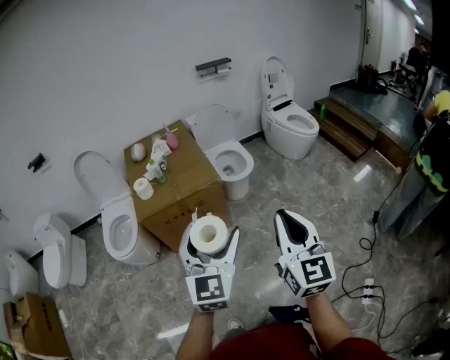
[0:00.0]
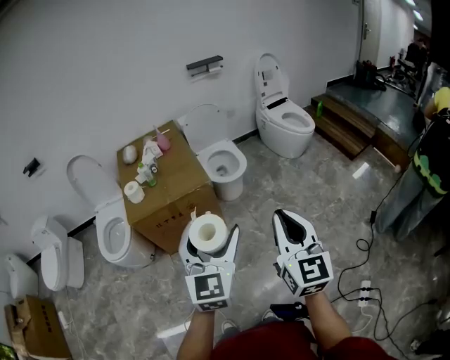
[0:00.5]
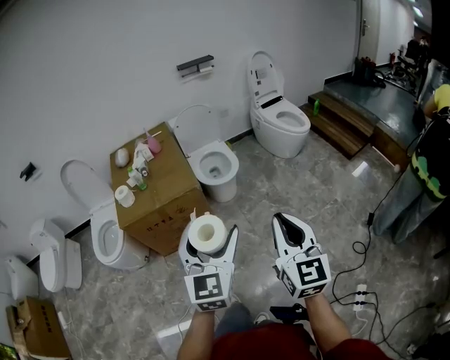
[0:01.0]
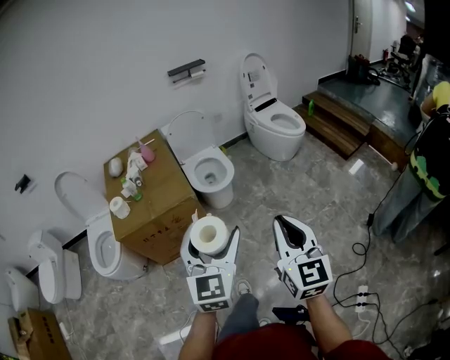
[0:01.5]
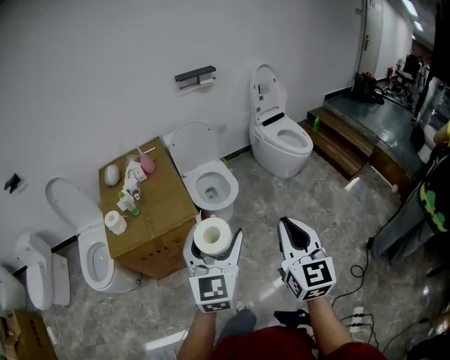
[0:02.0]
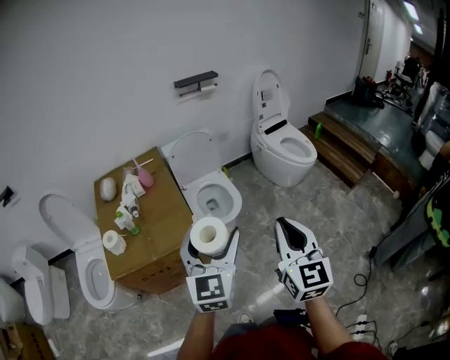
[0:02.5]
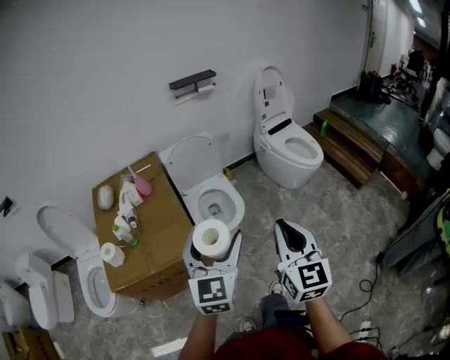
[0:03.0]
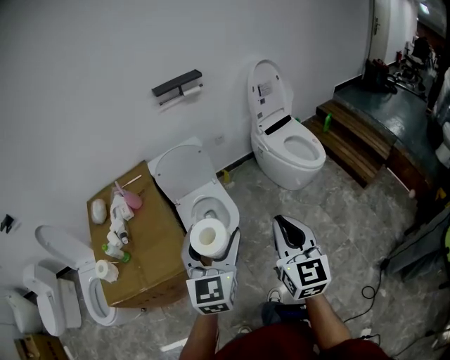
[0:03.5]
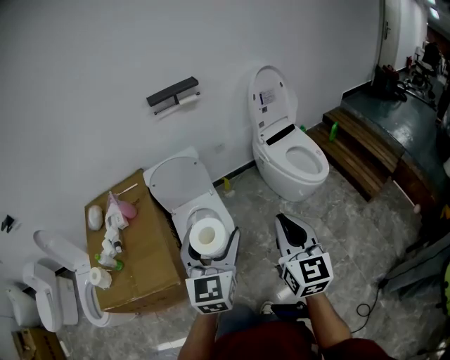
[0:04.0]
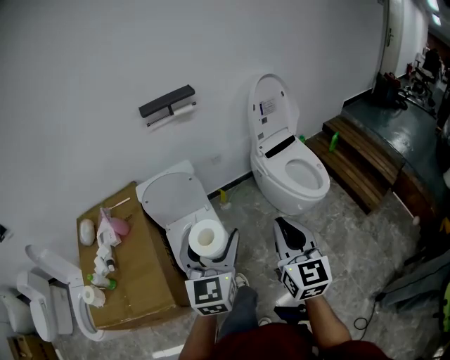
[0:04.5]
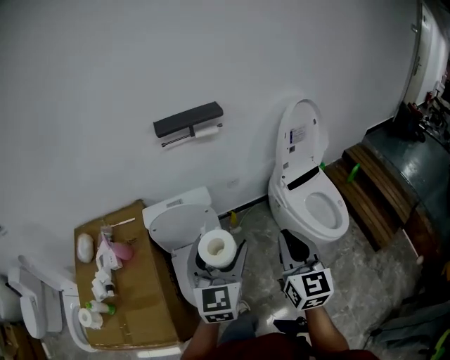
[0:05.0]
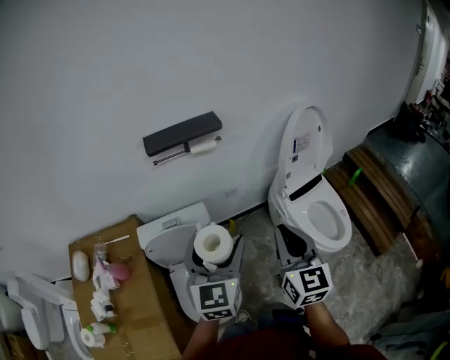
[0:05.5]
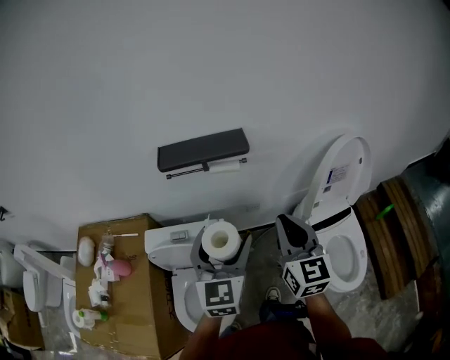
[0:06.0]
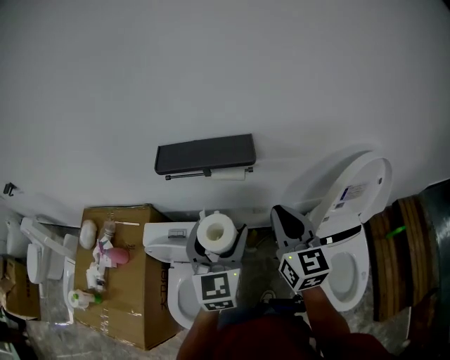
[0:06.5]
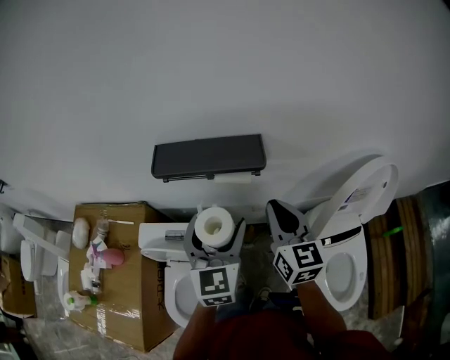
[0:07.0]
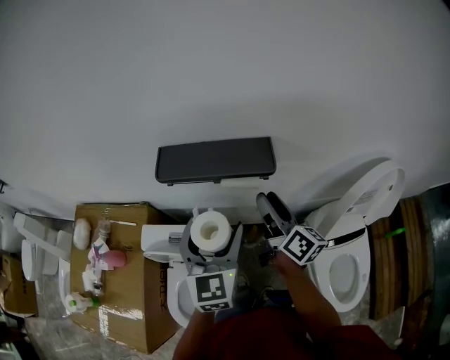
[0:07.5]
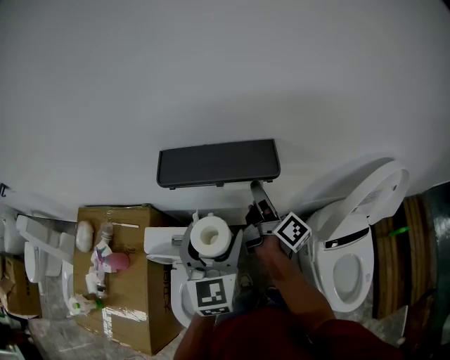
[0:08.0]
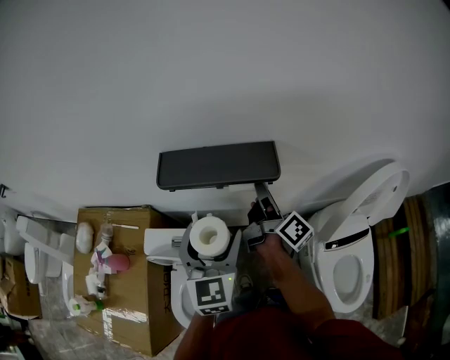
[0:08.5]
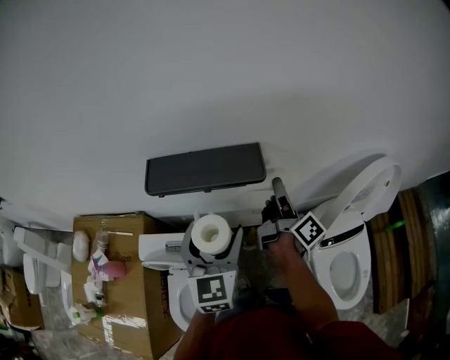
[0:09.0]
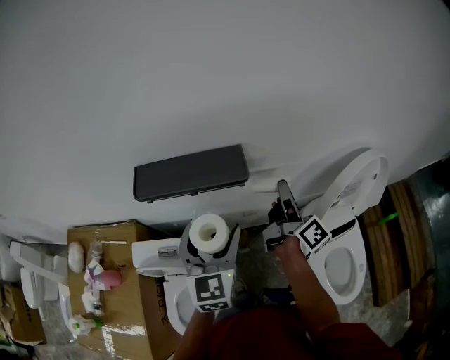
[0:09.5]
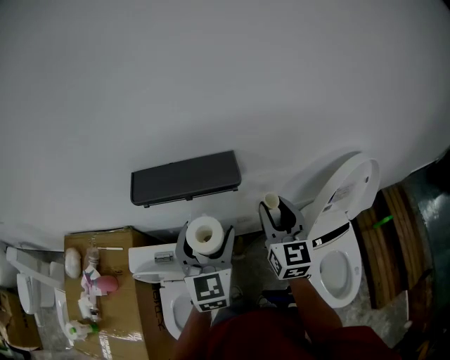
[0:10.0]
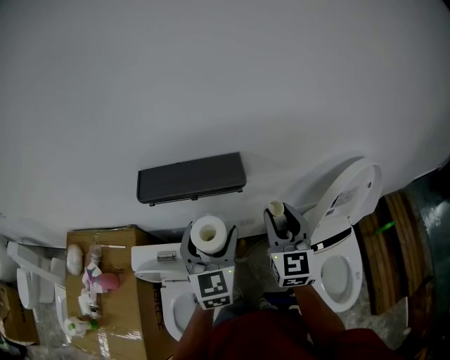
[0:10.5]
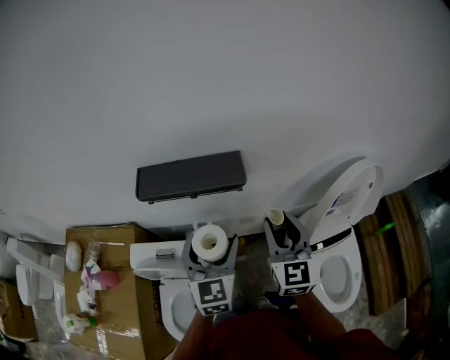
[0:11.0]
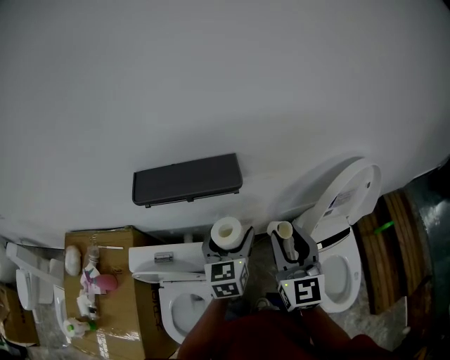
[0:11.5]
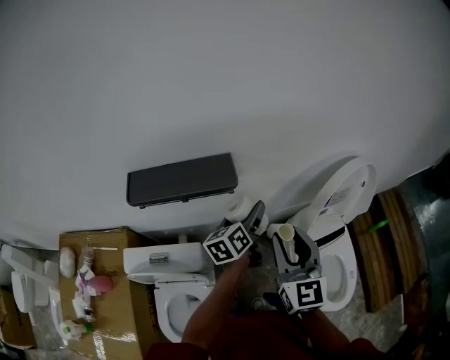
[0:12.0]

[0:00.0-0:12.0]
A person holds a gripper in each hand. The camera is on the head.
0:00.0 to 0:02.0: Both grippers move forward and to the right, about 25 cm.
0:02.0 to 0:04.0: The two grippers travel together, forward, roughly 40 cm.
0:04.0 to 0:06.0: The pair of grippers is taken forward, approximately 60 cm.
0:06.0 to 0:08.0: The left gripper moves forward, roughly 15 cm; the right gripper travels forward by some 25 cm, rotates around the line of its fingers by approximately 70 degrees, clockwise from behind, and opens.
0:08.0 to 0:10.0: The left gripper heads to the right, covering about 5 cm. Meanwhile the right gripper is displaced to the right, backward and upward by roughly 15 cm, rotates around the line of its fingers by roughly 70 degrees, counterclockwise from behind, and closes.
0:10.0 to 0:12.0: The left gripper heads to the right, downward and forward, covering about 15 cm, and twists roughly 50 degrees counterclockwise, seen from behind. The right gripper shifts roughly 10 cm backward.

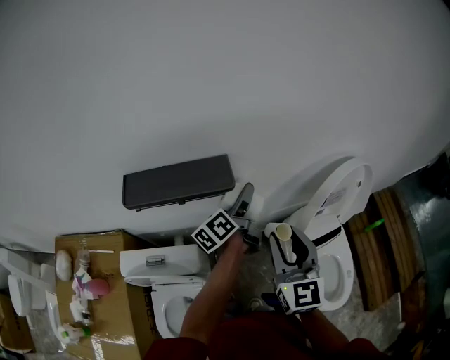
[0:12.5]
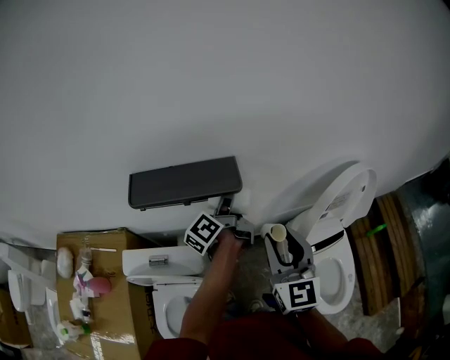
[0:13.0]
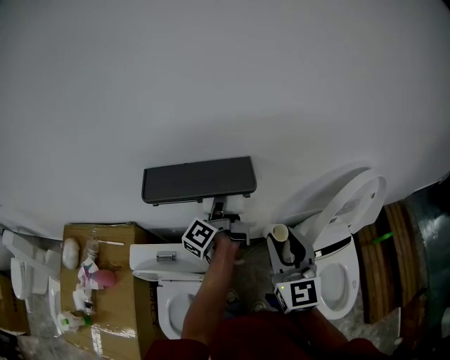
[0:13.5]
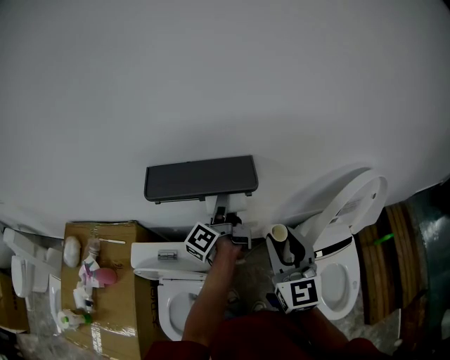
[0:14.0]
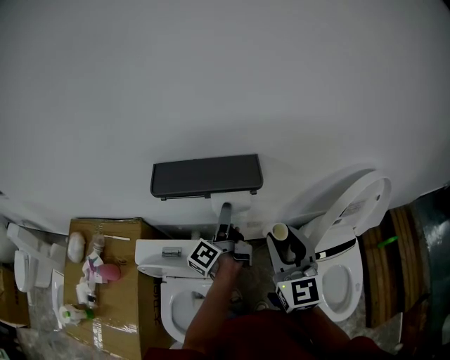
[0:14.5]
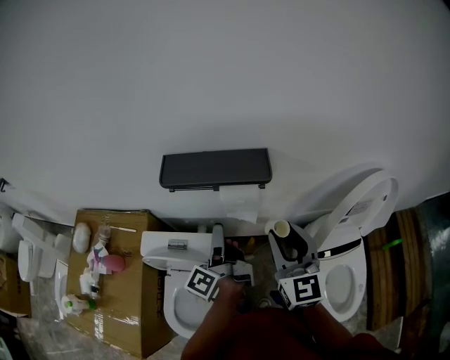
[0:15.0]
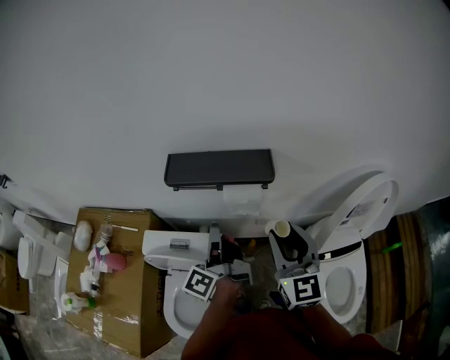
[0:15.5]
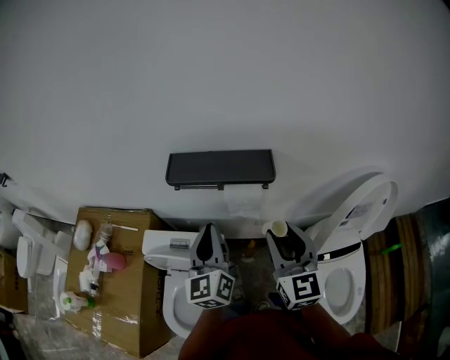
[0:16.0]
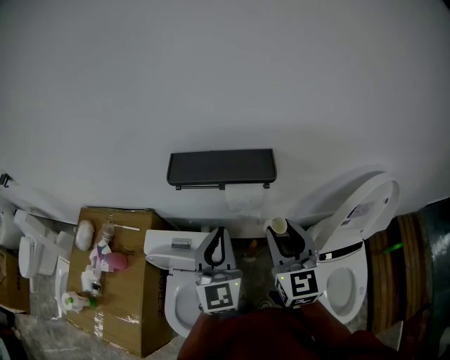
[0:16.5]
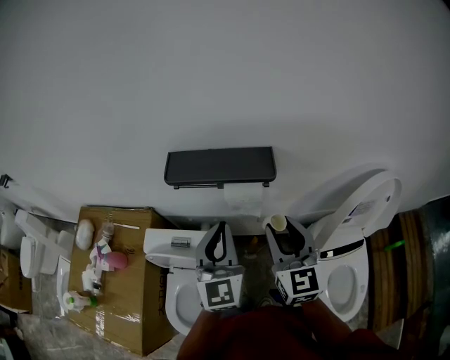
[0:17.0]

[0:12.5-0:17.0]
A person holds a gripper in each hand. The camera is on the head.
0:12.5 to 0:14.5: The left gripper is displaced to the left by about 15 cm, and swivels approximately 30 degrees. The right gripper heads to the left, covering about 5 cm.
0:14.5 to 0:17.0: The left gripper travels upward and backward by some 15 cm, twists about 80 degrees clockwise, seen from behind, and closes its fingers.

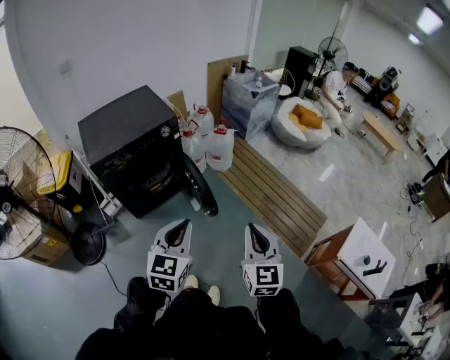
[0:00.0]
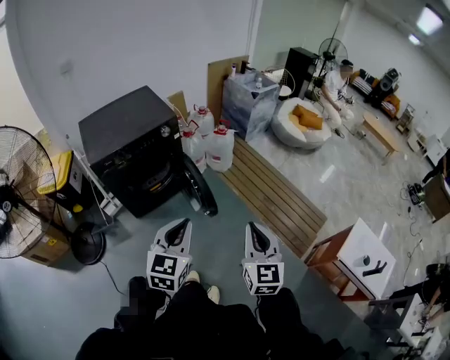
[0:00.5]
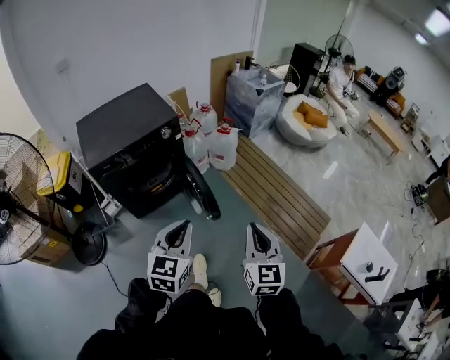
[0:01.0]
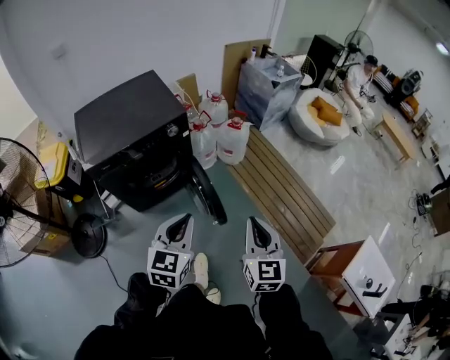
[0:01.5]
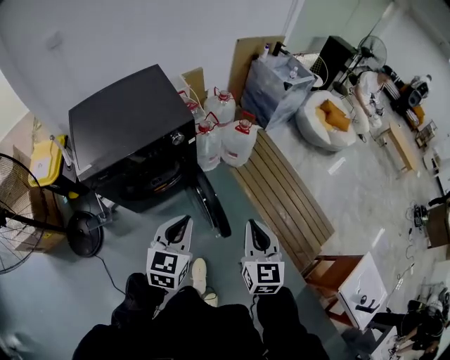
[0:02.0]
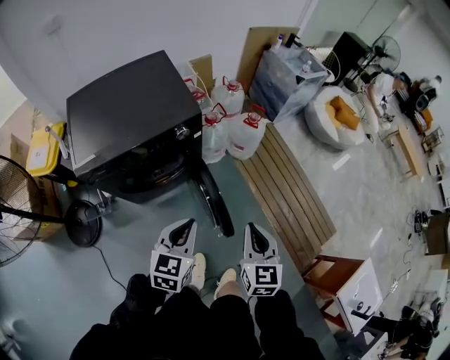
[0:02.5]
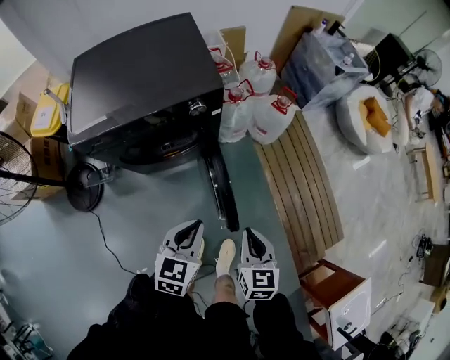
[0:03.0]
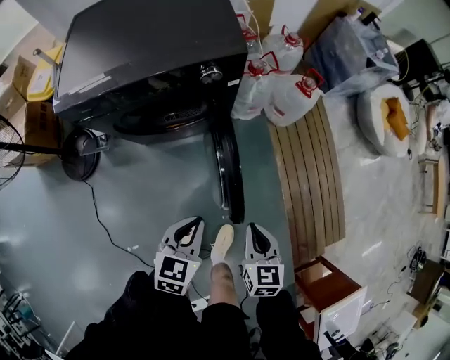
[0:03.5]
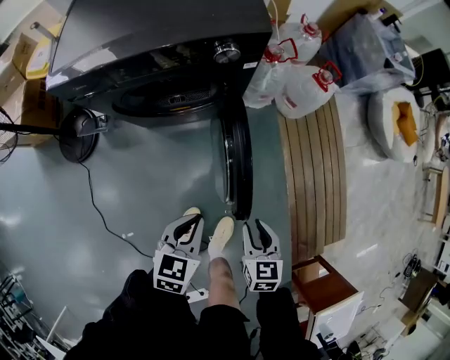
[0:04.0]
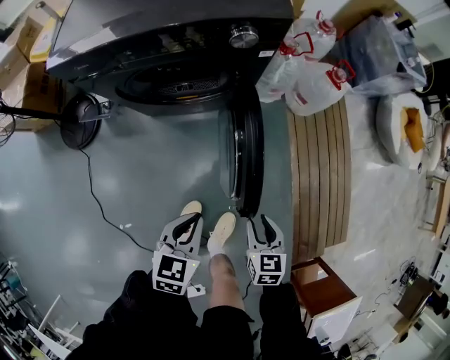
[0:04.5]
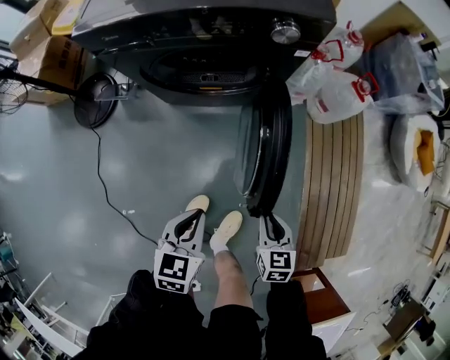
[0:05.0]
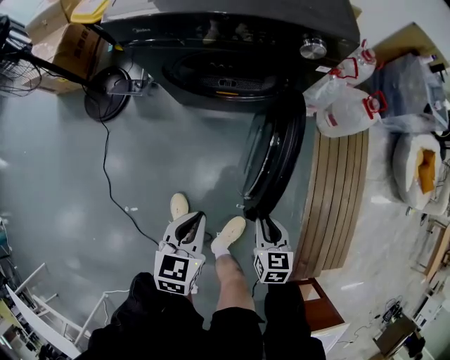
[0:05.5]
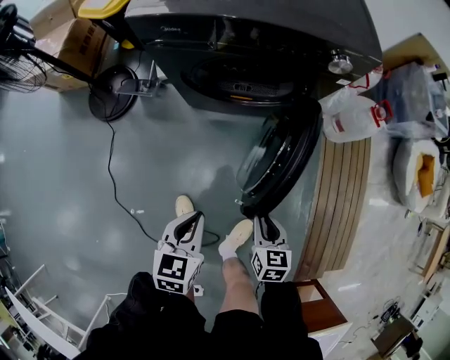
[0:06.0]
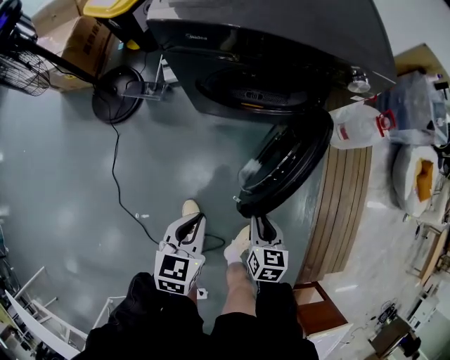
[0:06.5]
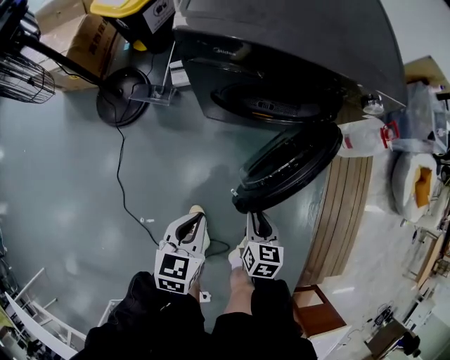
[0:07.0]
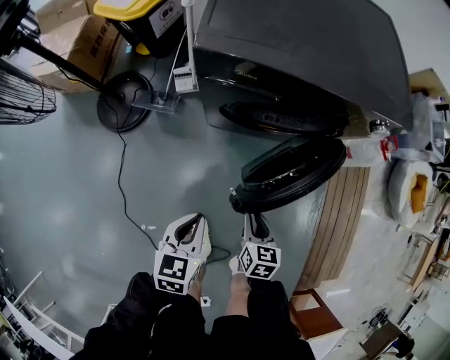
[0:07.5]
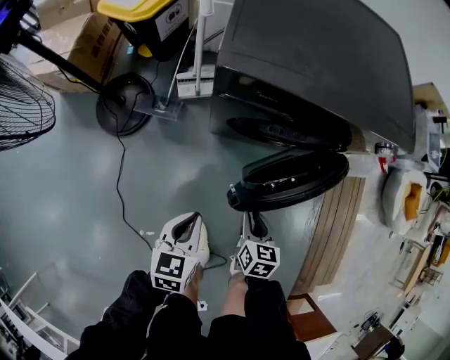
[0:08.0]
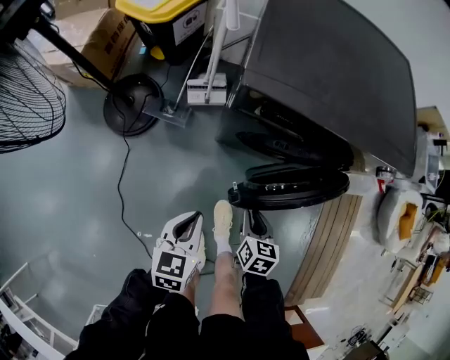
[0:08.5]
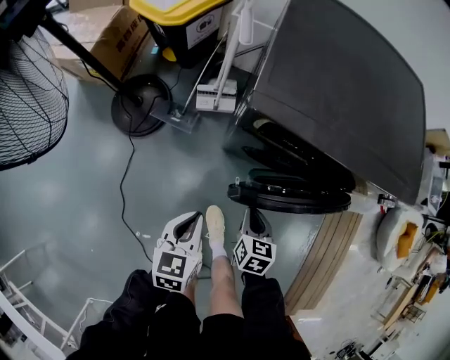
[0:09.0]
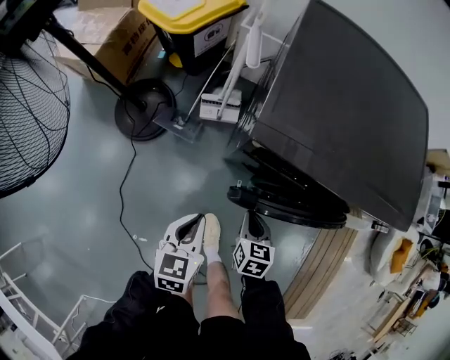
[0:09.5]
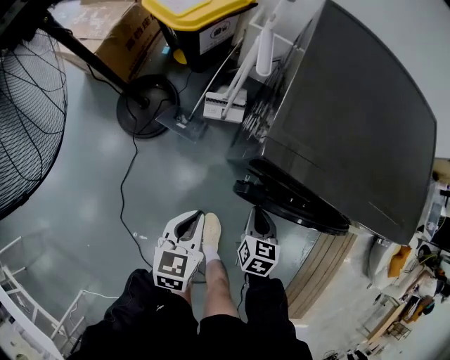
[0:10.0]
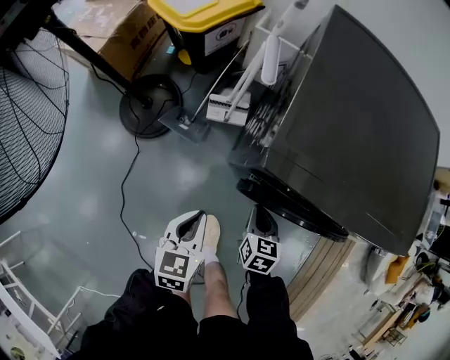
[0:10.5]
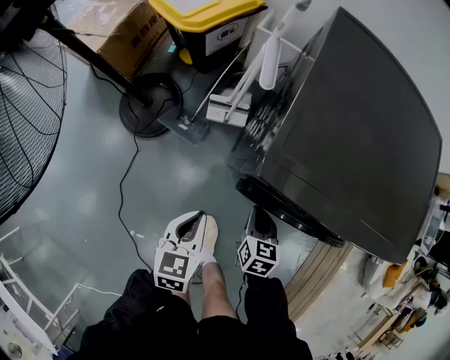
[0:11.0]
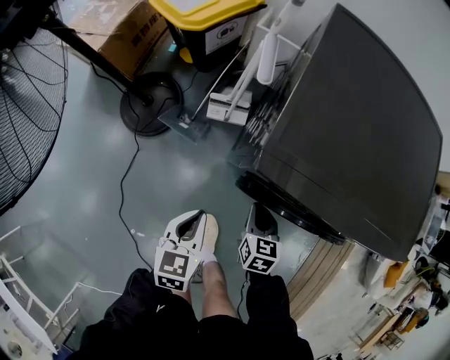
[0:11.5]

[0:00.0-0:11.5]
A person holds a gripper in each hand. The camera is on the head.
0:00.0 to 0:02.0: Both grippers move forward, roughly 30 cm.
0:02.0 to 0:04.0: The grippers both shift downward by approximately 35 cm. The left gripper rotates approximately 30 degrees, while the right gripper swivels roughly 40 degrees, and opens up.
0:04.0 to 0:06.0: The left gripper goes approximately 20 cm to the left, and changes its angle by some 20 degrees. Meanwhile the right gripper heads to the left and downward, covering roughly 15 cm.
0:06.0 to 0:07.5: The two grippers go about 25 cm to the left and forward.
0:07.5 to 0:09.5: The two grippers go about 20 cm forward and to the left. The right gripper closes its fingers.
0:09.5 to 0:11.5: The right gripper goes about 10 cm forward. Meanwhile the left gripper heads forward, covering some 5 cm.
